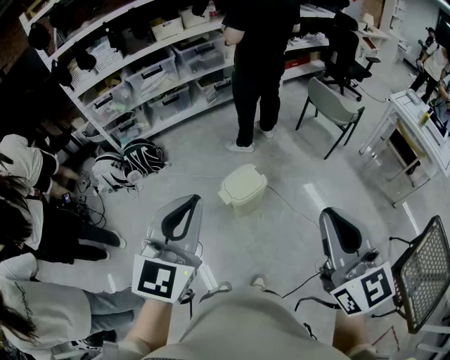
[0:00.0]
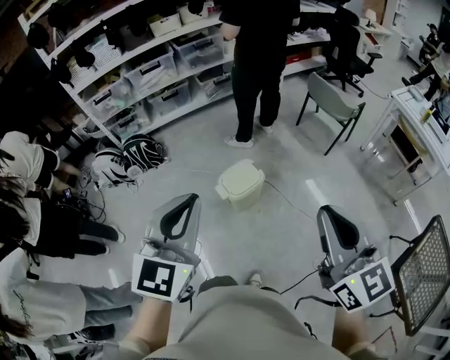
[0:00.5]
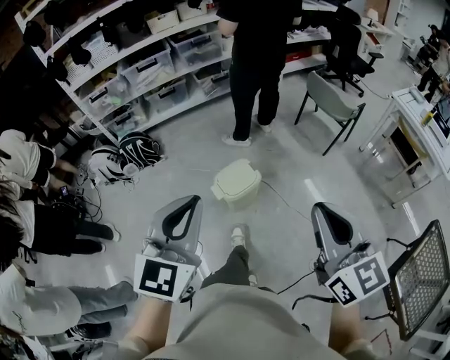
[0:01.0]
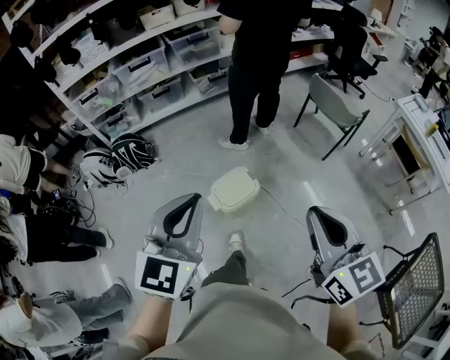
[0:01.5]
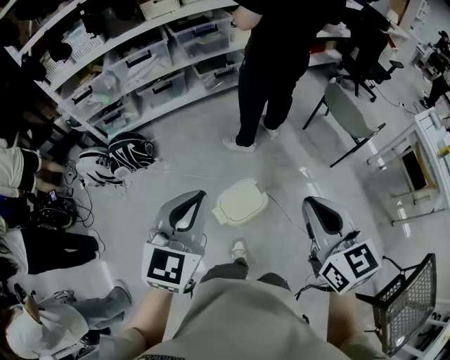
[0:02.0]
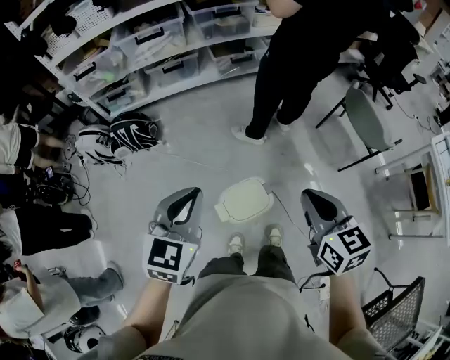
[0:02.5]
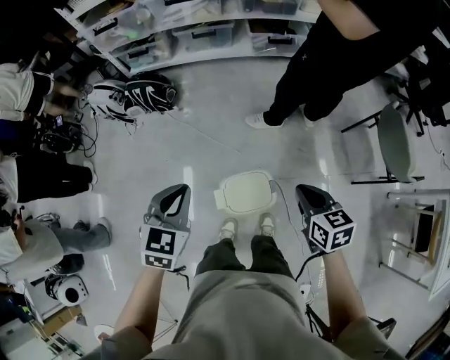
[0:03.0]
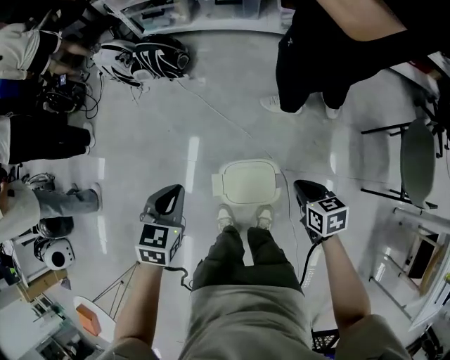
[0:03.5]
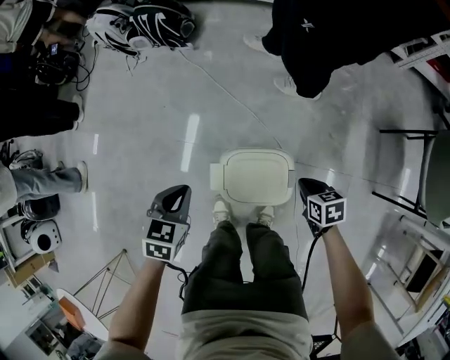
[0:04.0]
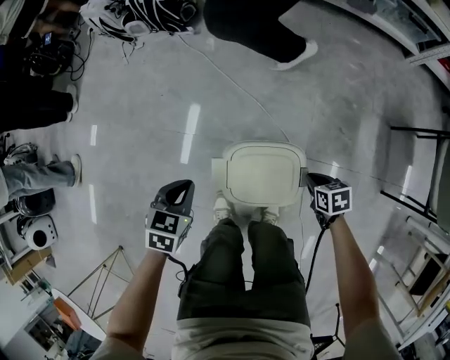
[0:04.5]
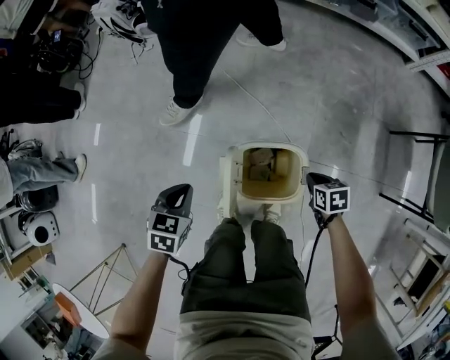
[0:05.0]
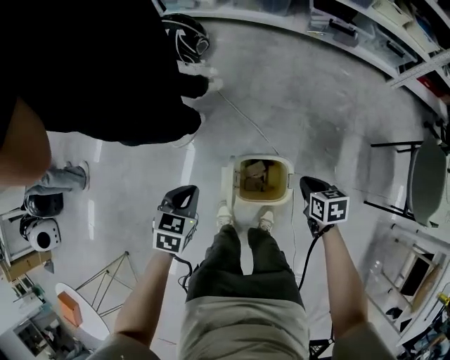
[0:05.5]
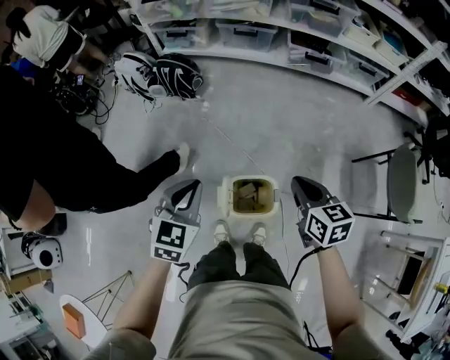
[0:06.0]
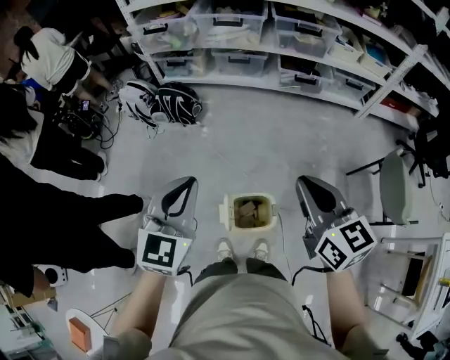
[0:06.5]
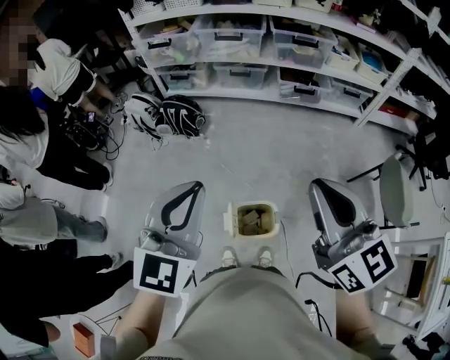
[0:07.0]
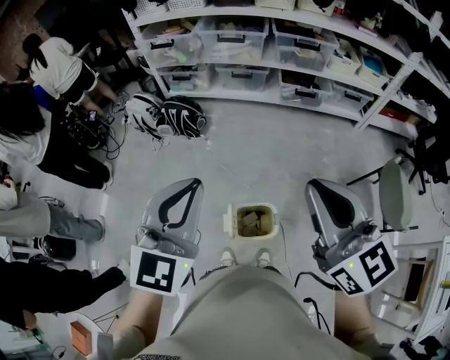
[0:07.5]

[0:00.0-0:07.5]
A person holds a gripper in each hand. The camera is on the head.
0:00.0 to 0:02.0: Both grippers travel together forward, about 30 cm.
0:02.0 to 0:04.0: The two grippers go about 60 cm downward. The right gripper points its fingers about 40 degrees further downward; the left gripper points its fingers approximately 40 degrees further downward.
0:04.0 to 0:05.5: The right gripper travels upward by some 10 cm. Meanwhile the left gripper moves upward, roughly 5 cm.
0:05.5 to 0:07.5: Both grippers move upward, roughly 50 cm. The left gripper tips its fingers upward by approximately 40 degrees. The right gripper points its fingers some 50 degrees further upward.

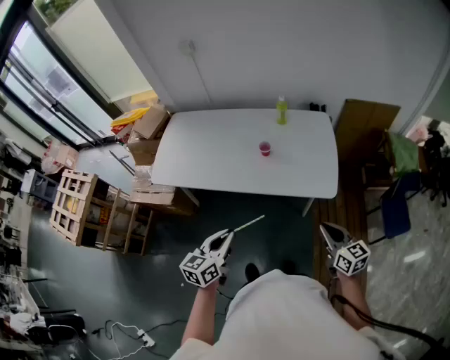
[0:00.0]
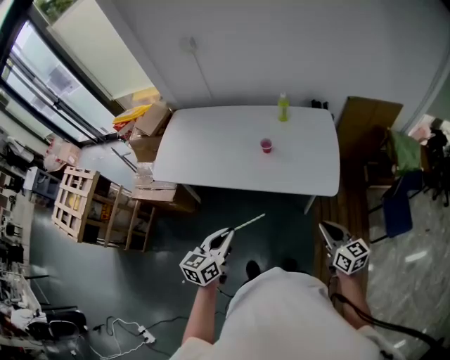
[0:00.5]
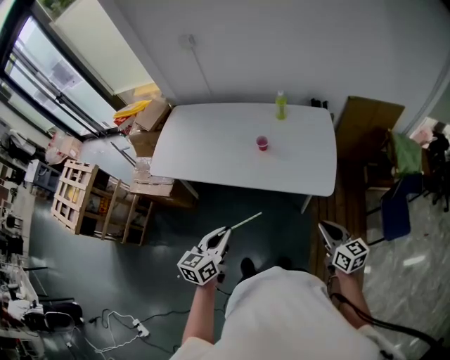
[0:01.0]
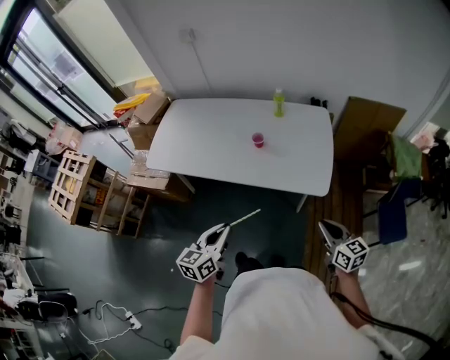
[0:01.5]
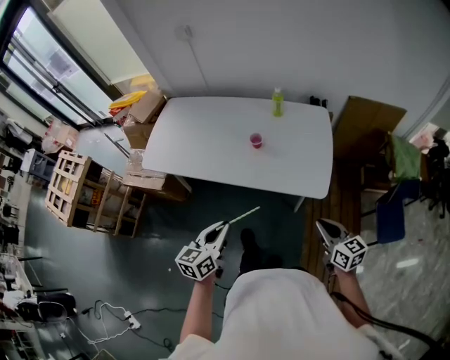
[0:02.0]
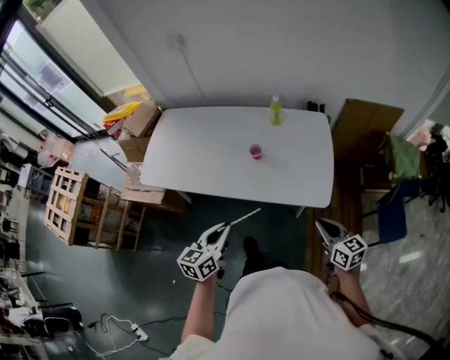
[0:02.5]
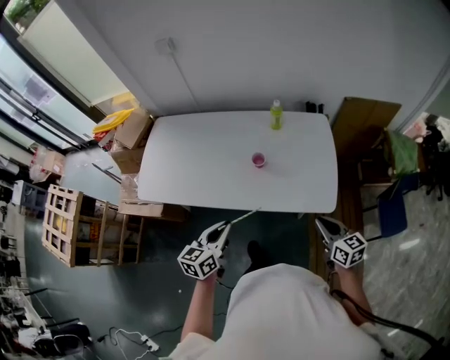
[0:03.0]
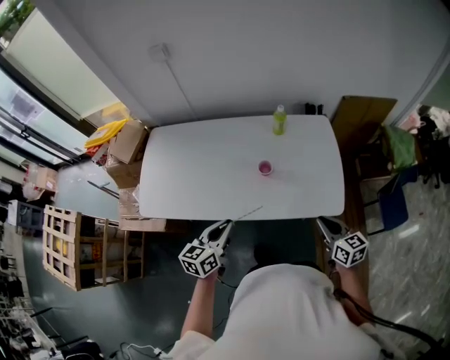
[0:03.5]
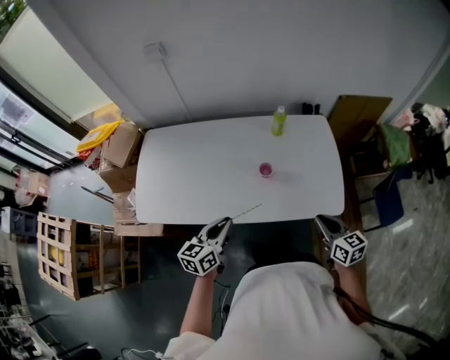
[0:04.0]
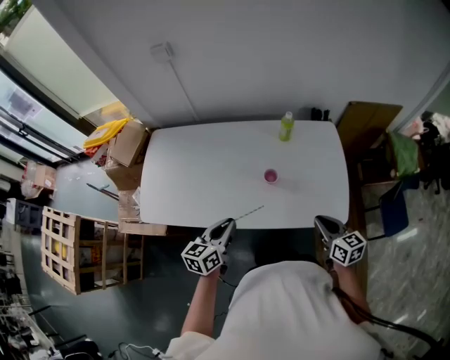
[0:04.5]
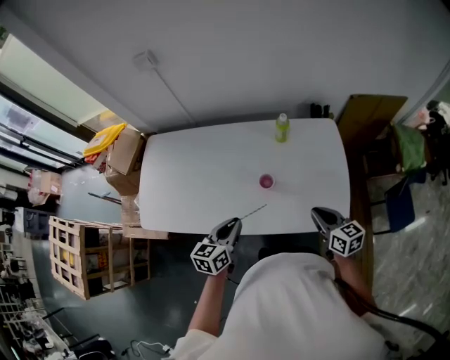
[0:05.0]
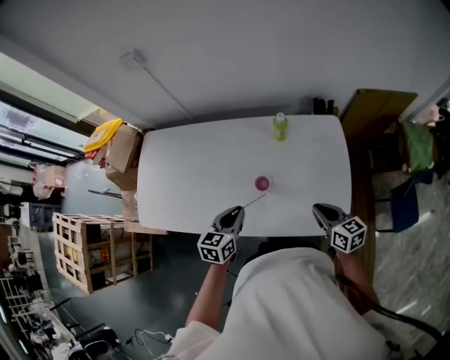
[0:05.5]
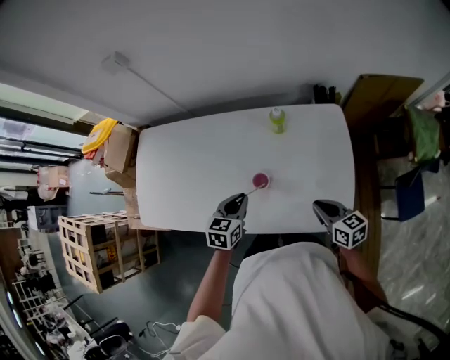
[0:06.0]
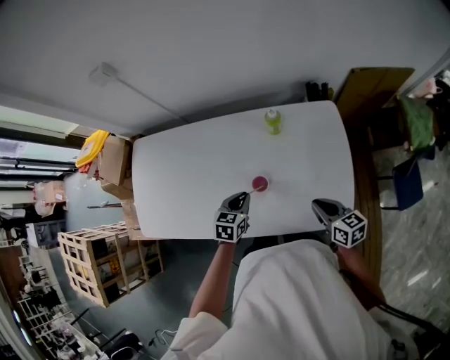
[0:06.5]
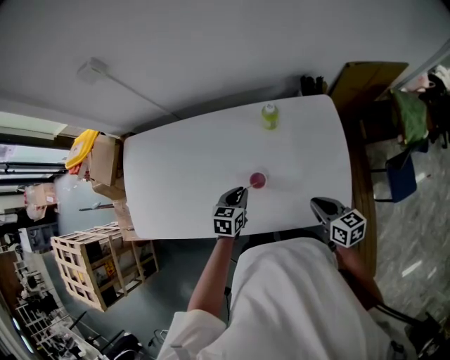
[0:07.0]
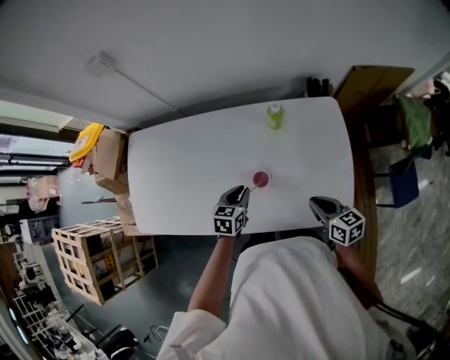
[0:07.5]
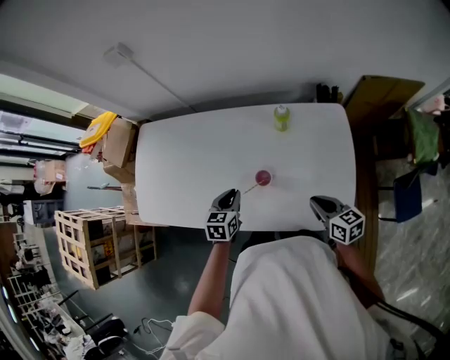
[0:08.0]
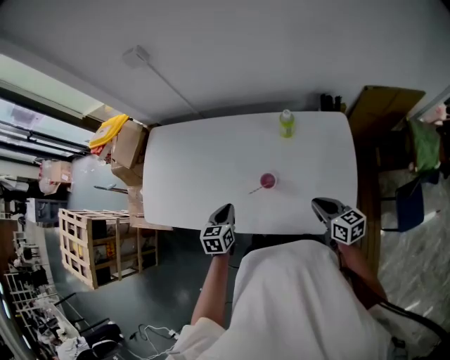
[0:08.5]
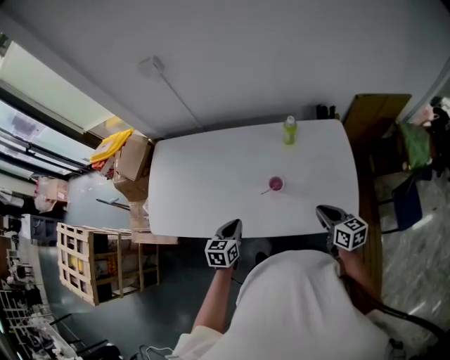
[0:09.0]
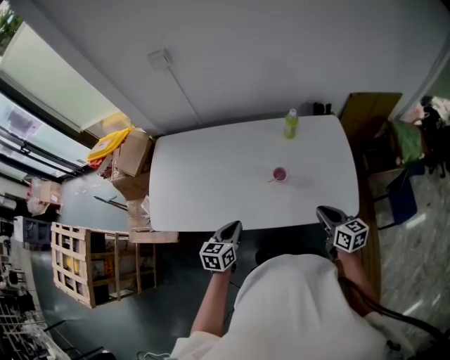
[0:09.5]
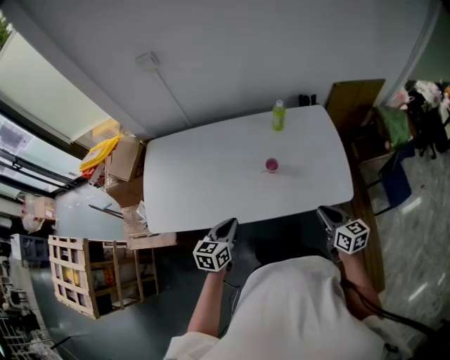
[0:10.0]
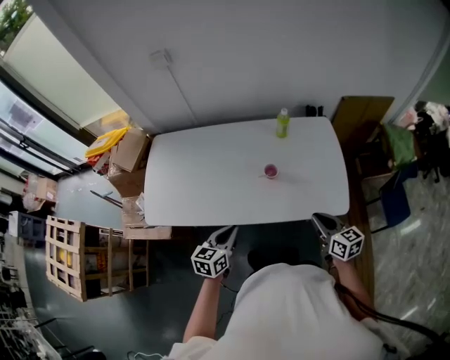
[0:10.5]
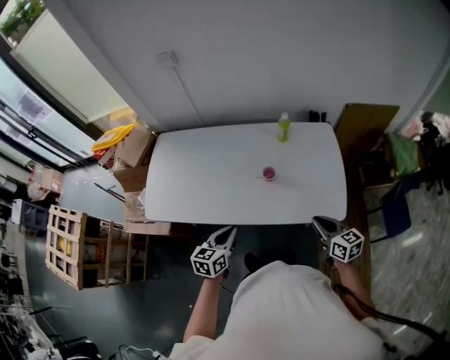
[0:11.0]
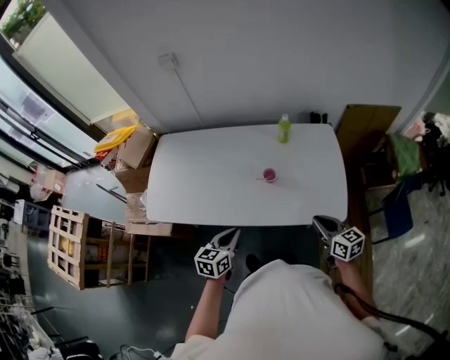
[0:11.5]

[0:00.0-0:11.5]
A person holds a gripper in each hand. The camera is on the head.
0:00.0 to 0:02.0: The grippers both shift to the right by roughly 5 cm.
0:02.0 to 0:04.0: Both grippers move forward and to the left, about 25 cm.
0:04.0 to 0:06.0: The left gripper shifts approximately 25 cm forward, to the right and downward, and turns by roughly 30 degrees, while the right gripper travels forward and downward by roughly 20 cm.
0:06.0 to 0:07.5: The left gripper moves downward, about 5 cm.
0:07.5 to 0:09.5: The left gripper travels backward, to the left and upward by about 25 cm. Meanwhile the right gripper travels backward and to the left by some 10 cm.
0:09.5 to 0:11.5: The left gripper travels backward and to the right by roughly 10 cm. Meanwhile the right gripper travels backward by about 5 cm.

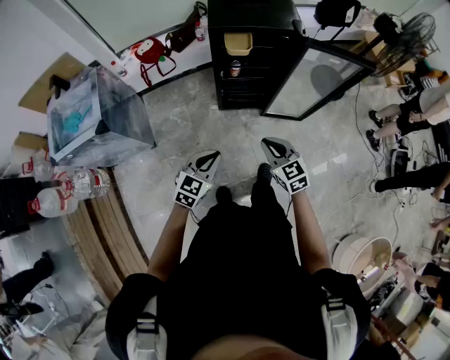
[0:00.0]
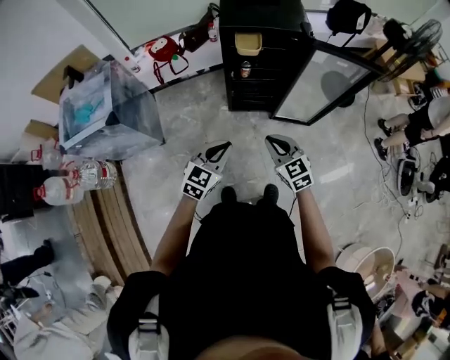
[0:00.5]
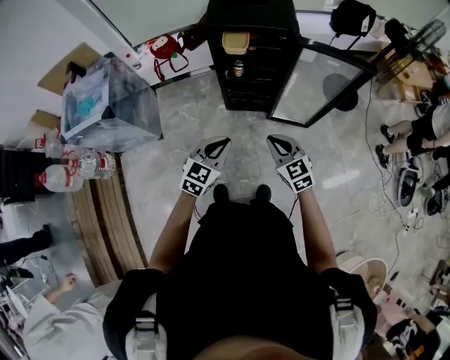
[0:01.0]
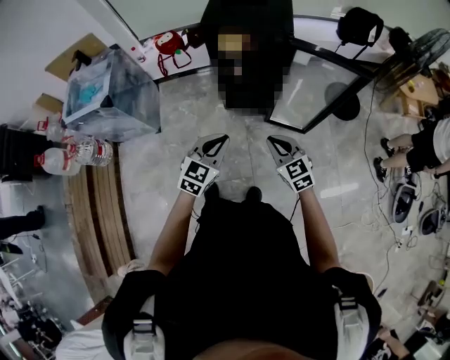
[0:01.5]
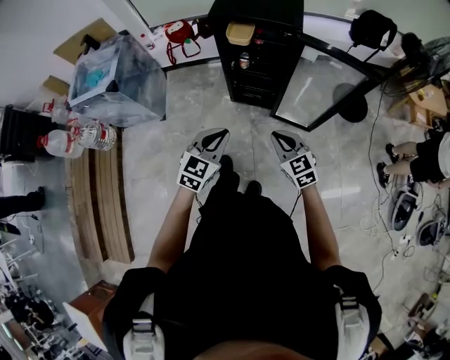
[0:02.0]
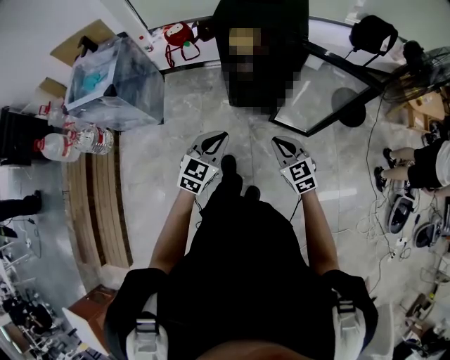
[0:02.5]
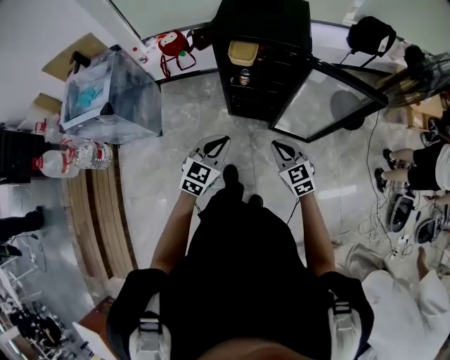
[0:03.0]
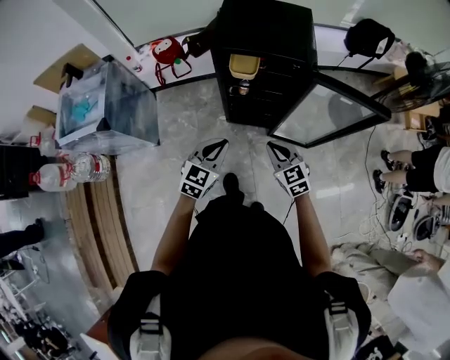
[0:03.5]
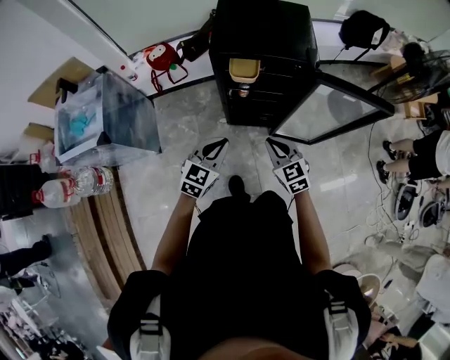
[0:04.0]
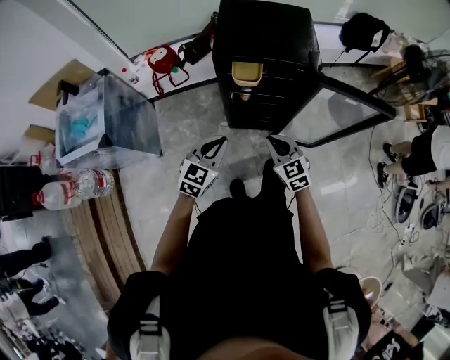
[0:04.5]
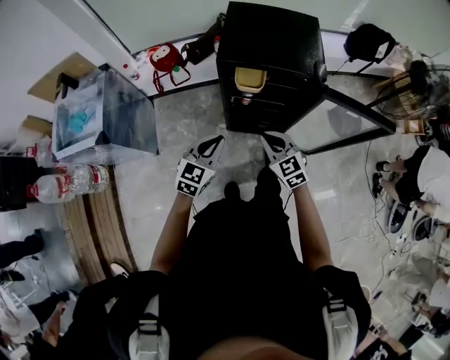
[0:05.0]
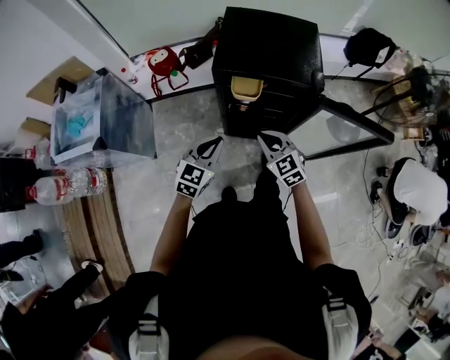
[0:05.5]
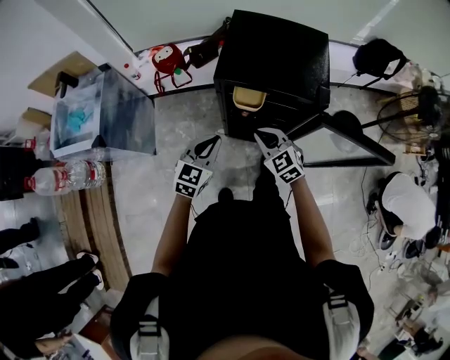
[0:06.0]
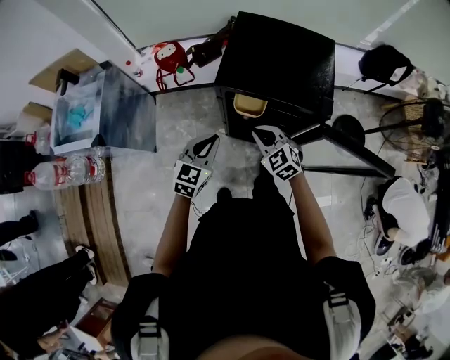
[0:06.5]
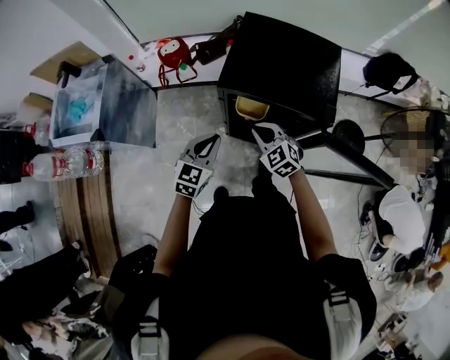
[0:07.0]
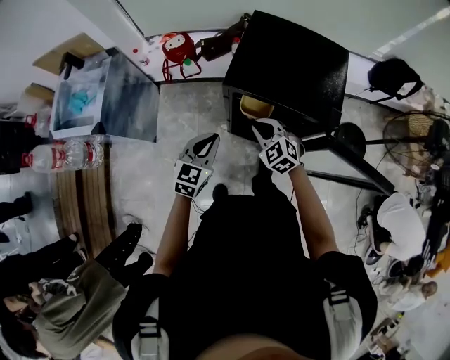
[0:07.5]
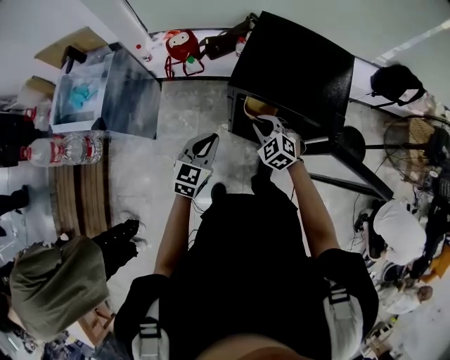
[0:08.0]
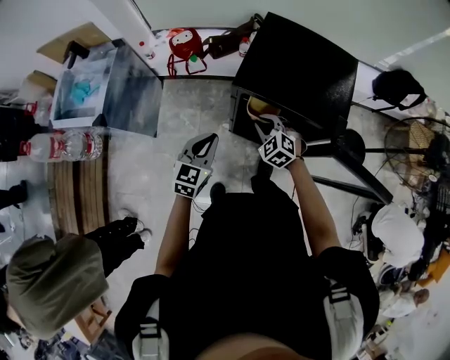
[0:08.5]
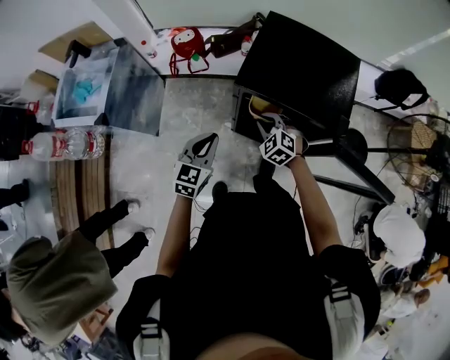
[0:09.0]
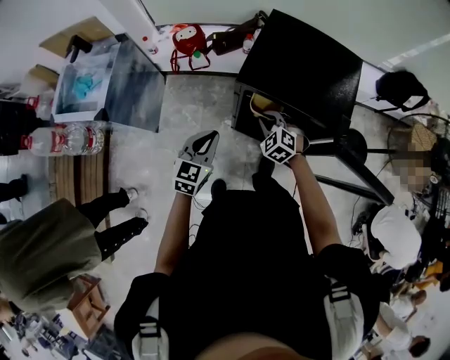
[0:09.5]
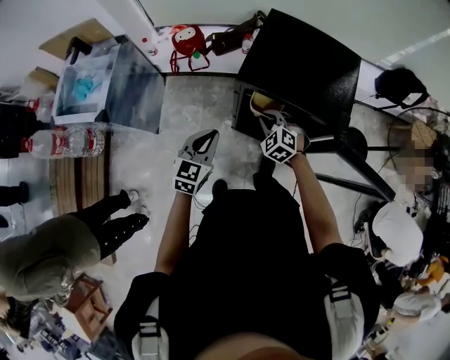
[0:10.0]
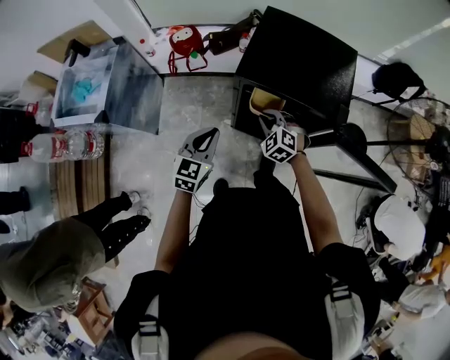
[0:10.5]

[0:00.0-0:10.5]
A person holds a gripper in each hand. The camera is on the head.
0:00.0 to 0:02.0: The two grippers go roughly 20 cm to the right.
0:02.0 to 0:04.0: The grippers both shift forward and to the left by about 25 cm.
0:04.0 to 0:06.5: Both grippers move forward, some 20 cm. The right gripper swivels roughly 30 degrees.
0:06.5 to 0:08.5: The right gripper is displaced forward by approximately 5 cm.
0:08.5 to 0:10.5: The grippers make only small movements.
